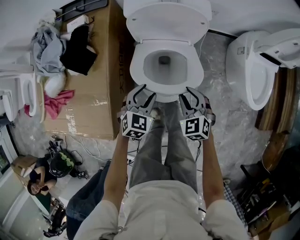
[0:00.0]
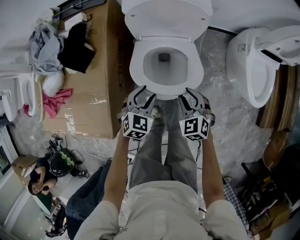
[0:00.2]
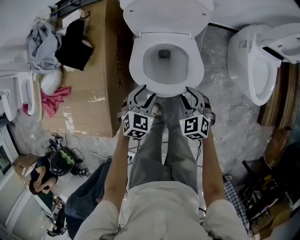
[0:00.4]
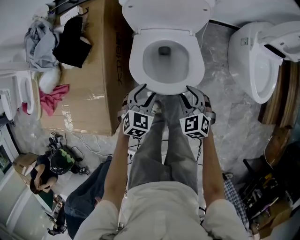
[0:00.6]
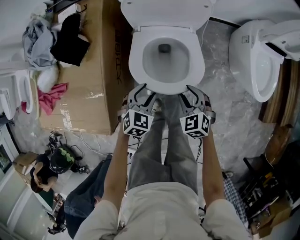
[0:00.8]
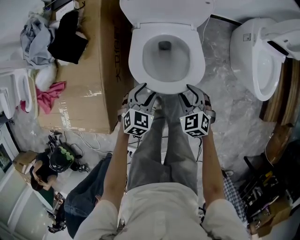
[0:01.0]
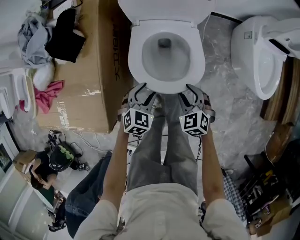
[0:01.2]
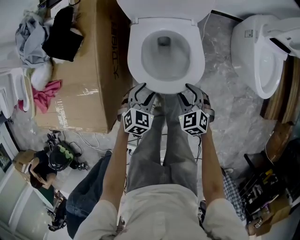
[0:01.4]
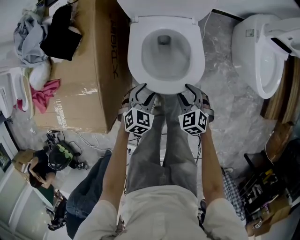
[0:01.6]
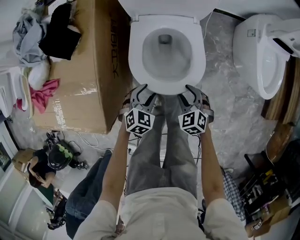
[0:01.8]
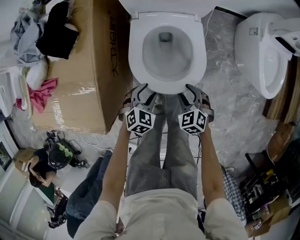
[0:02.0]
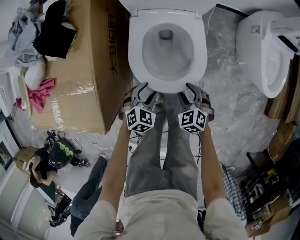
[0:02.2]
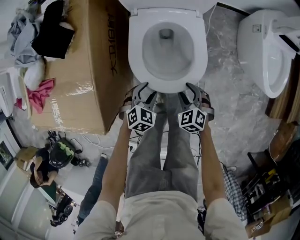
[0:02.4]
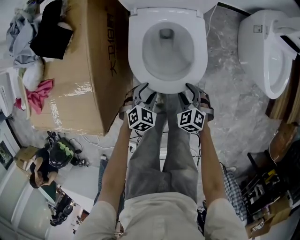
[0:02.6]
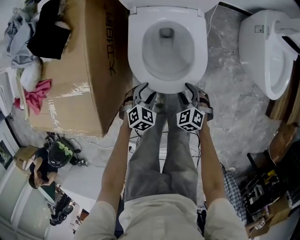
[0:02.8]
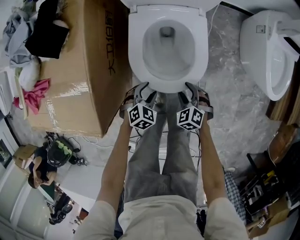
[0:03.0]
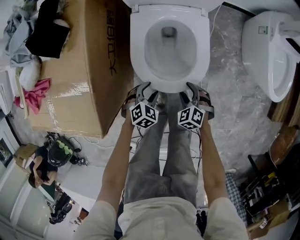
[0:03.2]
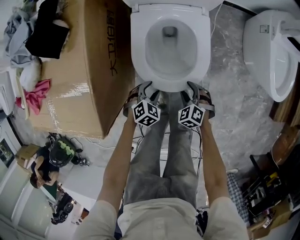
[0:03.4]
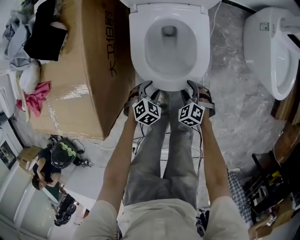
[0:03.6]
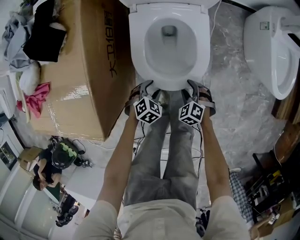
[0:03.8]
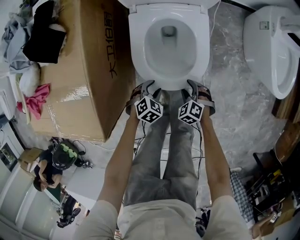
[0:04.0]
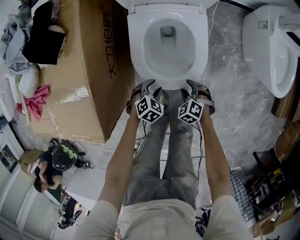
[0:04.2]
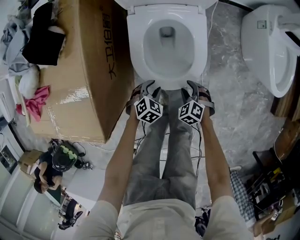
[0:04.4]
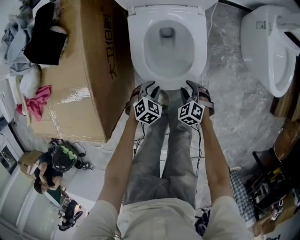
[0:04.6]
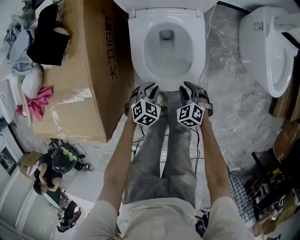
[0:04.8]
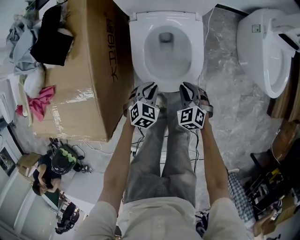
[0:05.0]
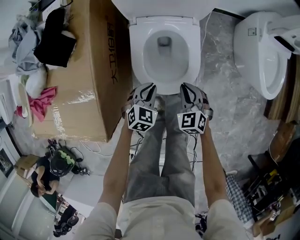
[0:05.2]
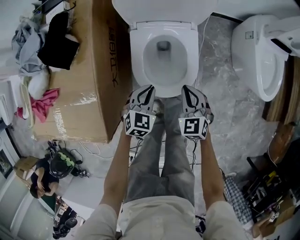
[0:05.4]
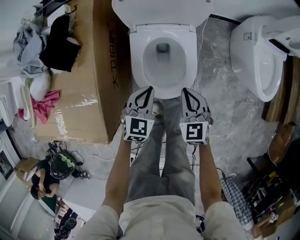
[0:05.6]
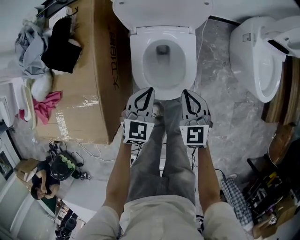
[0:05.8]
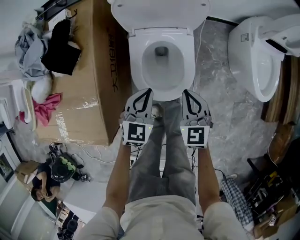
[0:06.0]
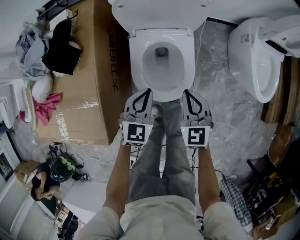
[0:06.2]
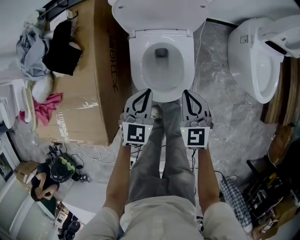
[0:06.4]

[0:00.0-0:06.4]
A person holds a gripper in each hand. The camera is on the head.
0:00.0 to 0:01.6: Both grippers move downward and backward, roughly 15 cm.
0:01.6 to 0:03.2: Both grippers travel together downward, approximately 10 cm.
0:03.2 to 0:04.8: The right gripper closes. The left gripper closes.
0:04.8 to 0:06.4: The grippers both shift upward by roughly 25 cm. The left gripper changes its angle by approximately 30 degrees. Meanwhile the right gripper points its fingers some 30 degrees further upward, and closes.

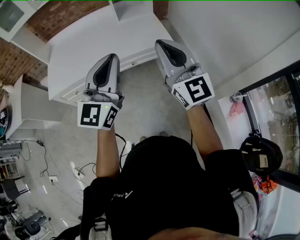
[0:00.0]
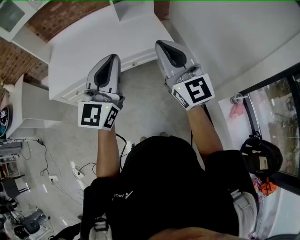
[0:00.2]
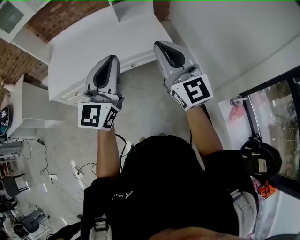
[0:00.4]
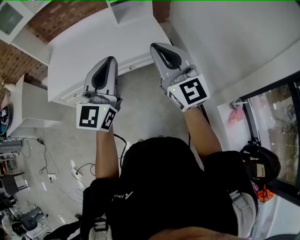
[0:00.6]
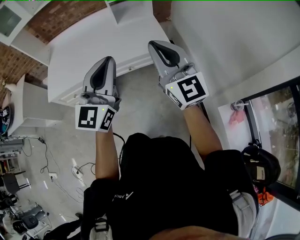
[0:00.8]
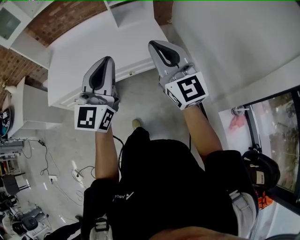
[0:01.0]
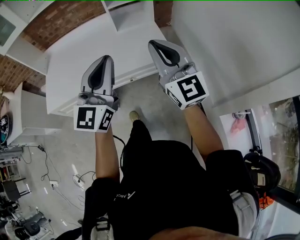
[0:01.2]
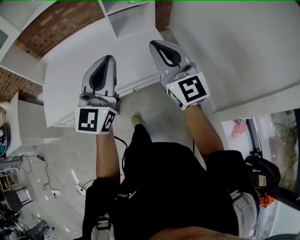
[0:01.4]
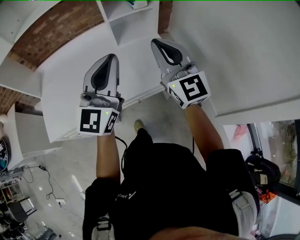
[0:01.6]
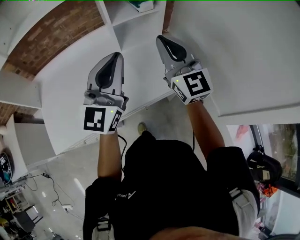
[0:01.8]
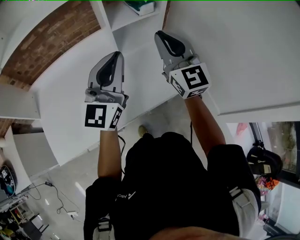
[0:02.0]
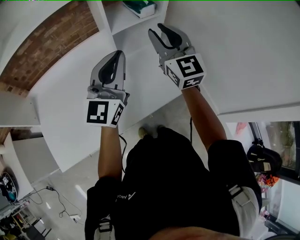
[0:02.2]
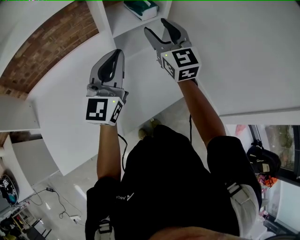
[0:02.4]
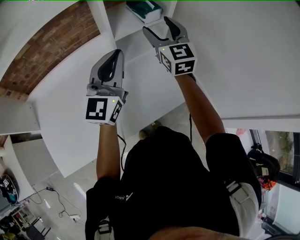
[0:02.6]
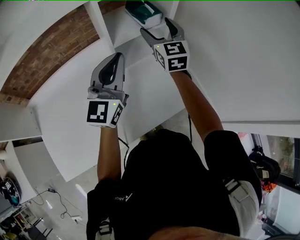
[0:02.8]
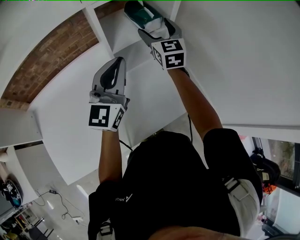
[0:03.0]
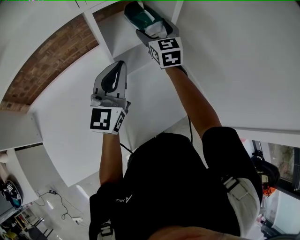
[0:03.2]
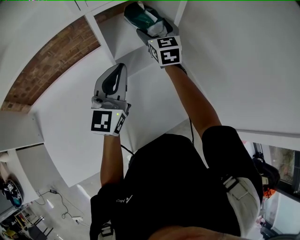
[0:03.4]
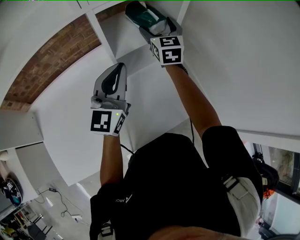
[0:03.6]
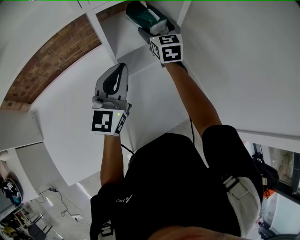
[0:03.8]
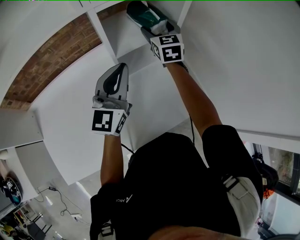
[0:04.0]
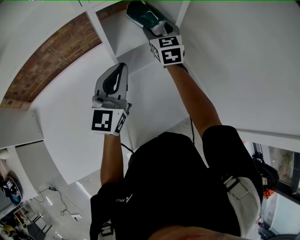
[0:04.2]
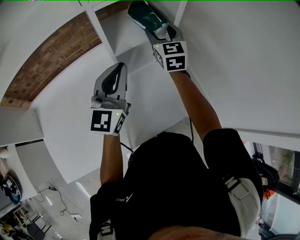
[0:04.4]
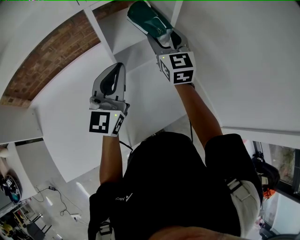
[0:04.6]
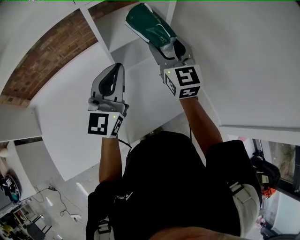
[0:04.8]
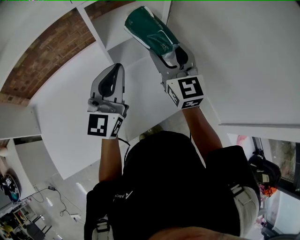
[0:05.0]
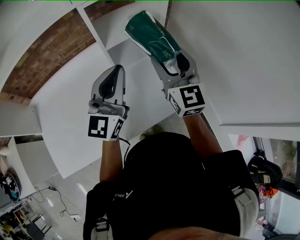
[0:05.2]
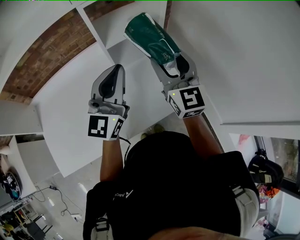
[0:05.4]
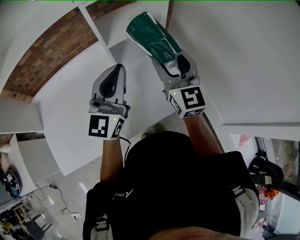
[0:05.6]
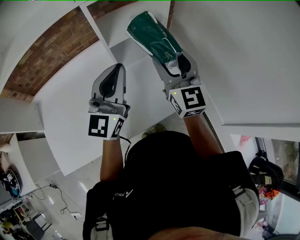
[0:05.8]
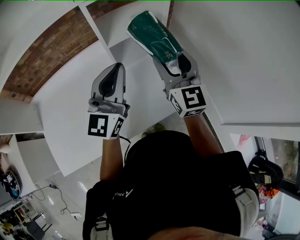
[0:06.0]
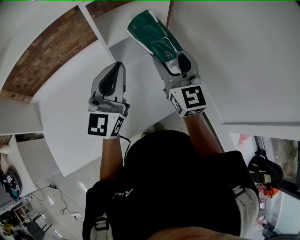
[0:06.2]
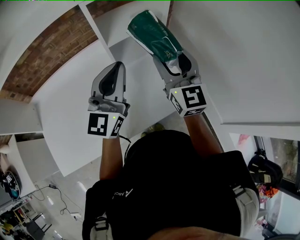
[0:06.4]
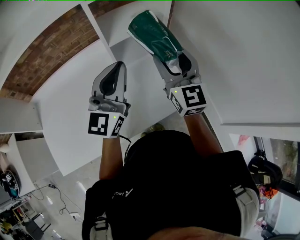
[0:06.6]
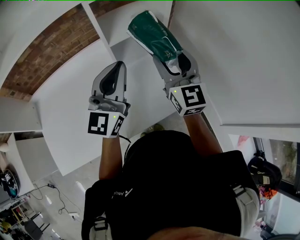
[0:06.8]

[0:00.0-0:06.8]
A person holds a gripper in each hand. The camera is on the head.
0:00.0 to 0:01.4: The grippers both shift forward by approximately 20 cm.
0:01.4 to 0:02.8: The grippers both shift forward by roughly 40 cm. The right gripper turns by approximately 30 degrees, and opens its fingers.
0:02.8 to 0:04.0: The right gripper is displaced forward by approximately 10 cm; the left gripper ends up some 5 cm from where it was.
0:04.0 to 0:05.4: The right gripper heads backward, covering roughly 25 cm. Meanwhile the left gripper heads backward and to the right, covering roughly 10 cm.
0:05.4 to 0:06.8: Both grippers stay put.

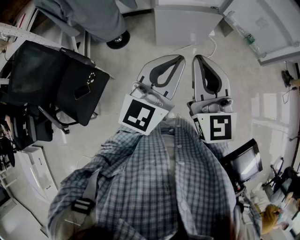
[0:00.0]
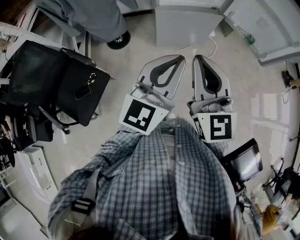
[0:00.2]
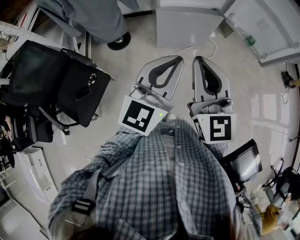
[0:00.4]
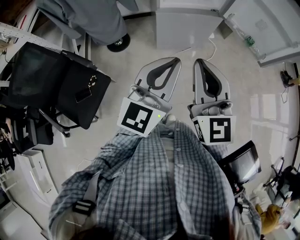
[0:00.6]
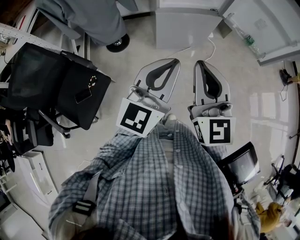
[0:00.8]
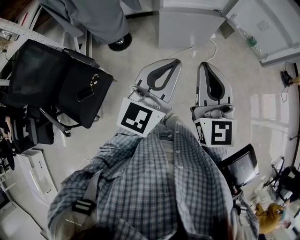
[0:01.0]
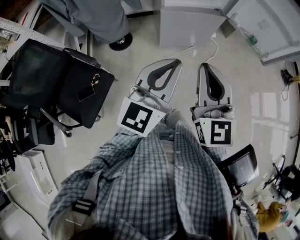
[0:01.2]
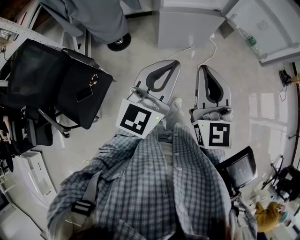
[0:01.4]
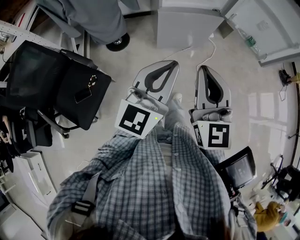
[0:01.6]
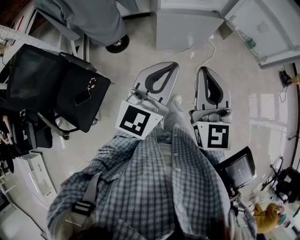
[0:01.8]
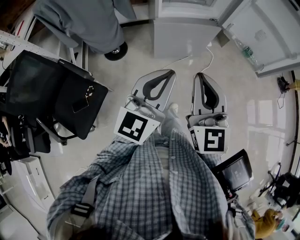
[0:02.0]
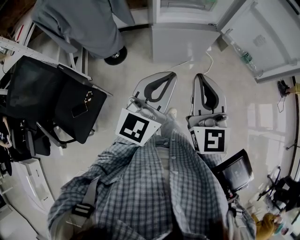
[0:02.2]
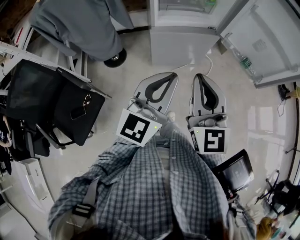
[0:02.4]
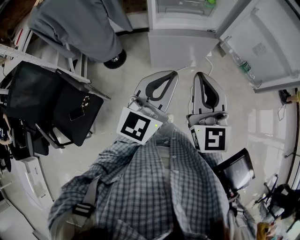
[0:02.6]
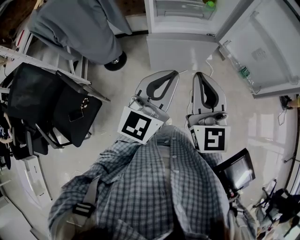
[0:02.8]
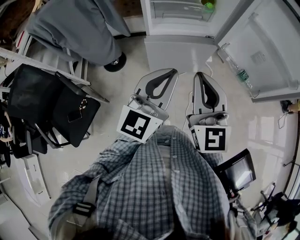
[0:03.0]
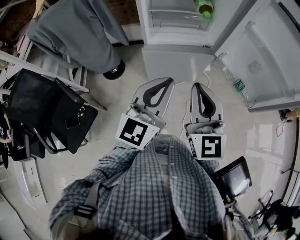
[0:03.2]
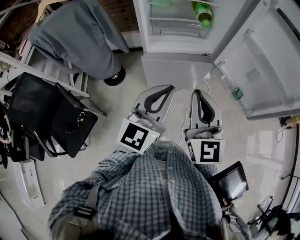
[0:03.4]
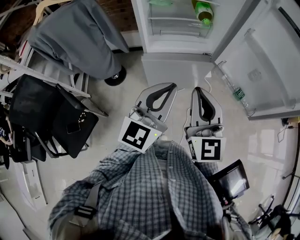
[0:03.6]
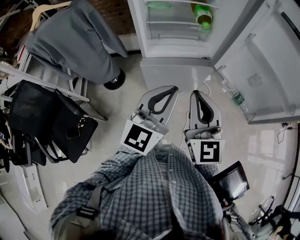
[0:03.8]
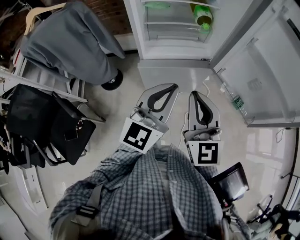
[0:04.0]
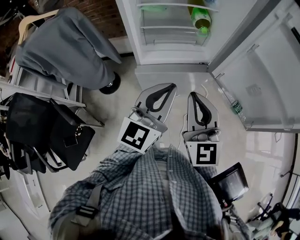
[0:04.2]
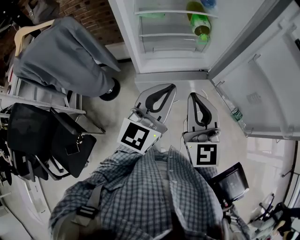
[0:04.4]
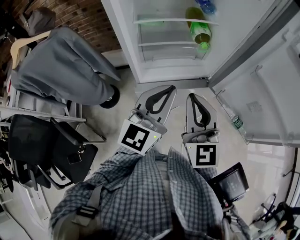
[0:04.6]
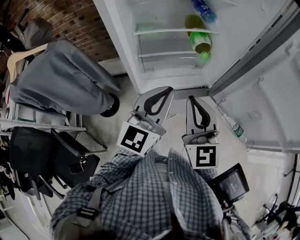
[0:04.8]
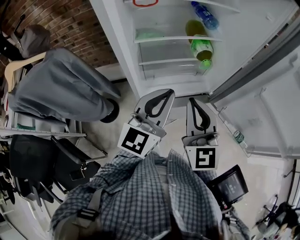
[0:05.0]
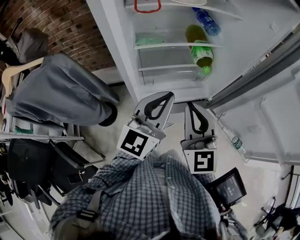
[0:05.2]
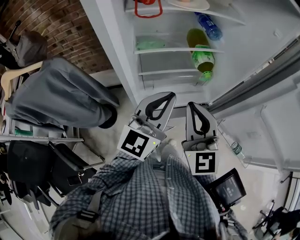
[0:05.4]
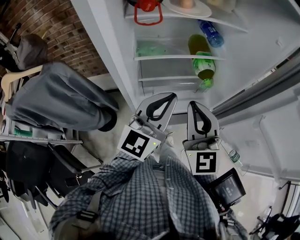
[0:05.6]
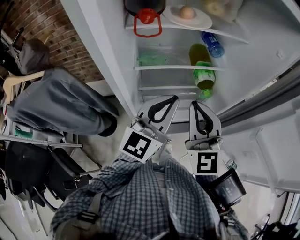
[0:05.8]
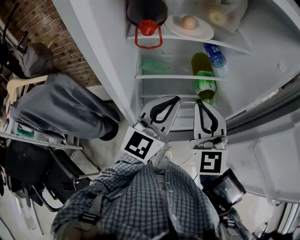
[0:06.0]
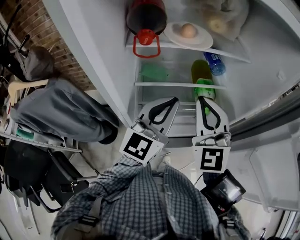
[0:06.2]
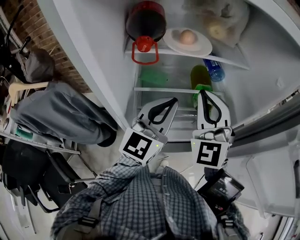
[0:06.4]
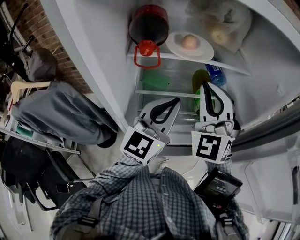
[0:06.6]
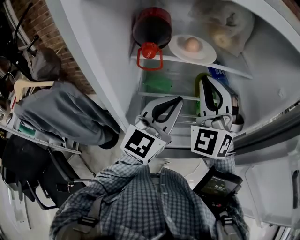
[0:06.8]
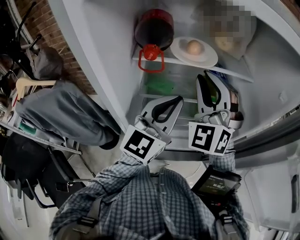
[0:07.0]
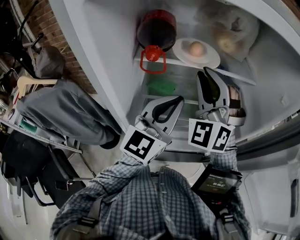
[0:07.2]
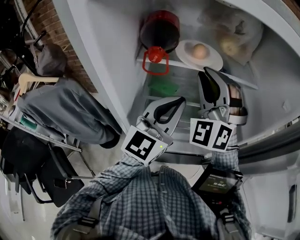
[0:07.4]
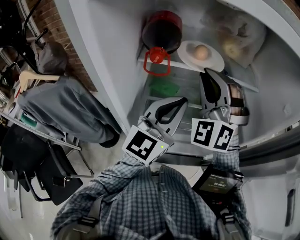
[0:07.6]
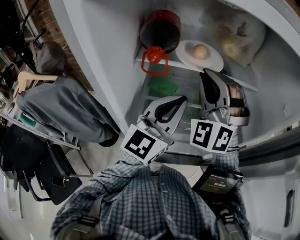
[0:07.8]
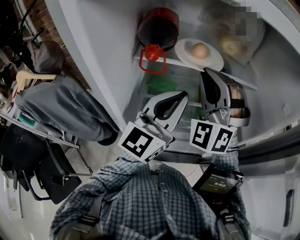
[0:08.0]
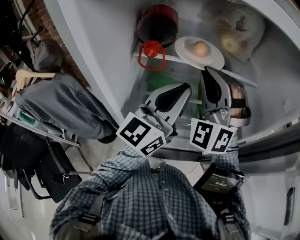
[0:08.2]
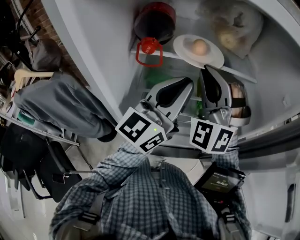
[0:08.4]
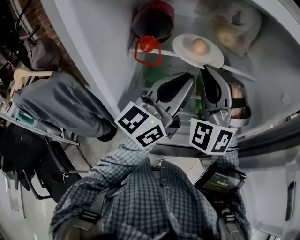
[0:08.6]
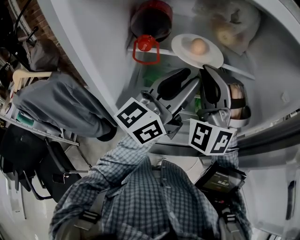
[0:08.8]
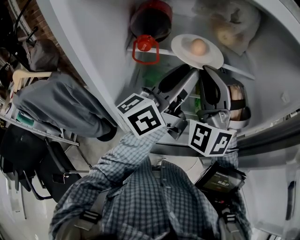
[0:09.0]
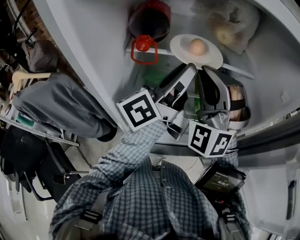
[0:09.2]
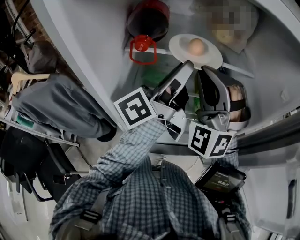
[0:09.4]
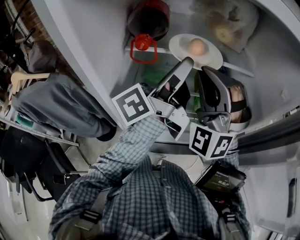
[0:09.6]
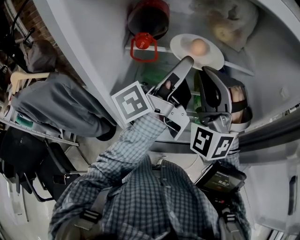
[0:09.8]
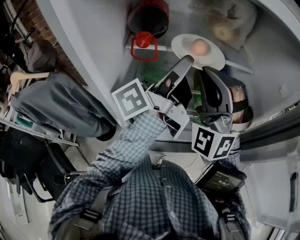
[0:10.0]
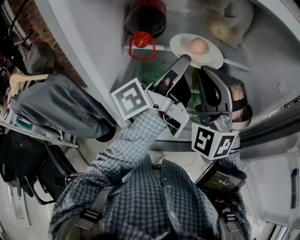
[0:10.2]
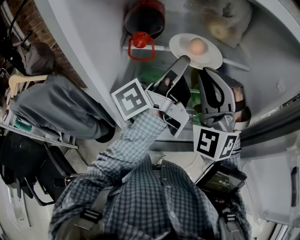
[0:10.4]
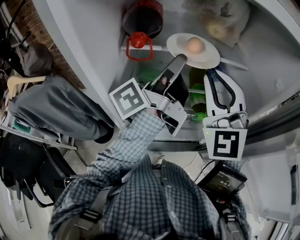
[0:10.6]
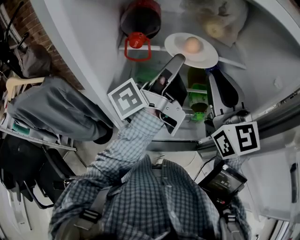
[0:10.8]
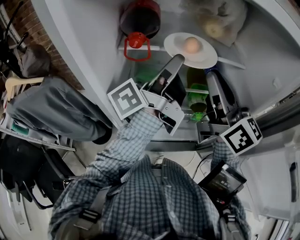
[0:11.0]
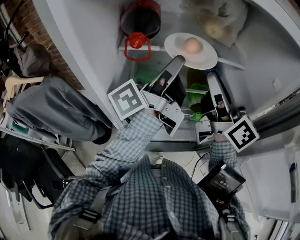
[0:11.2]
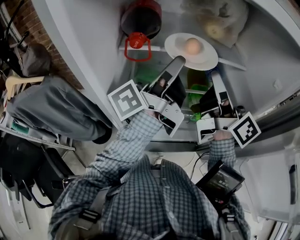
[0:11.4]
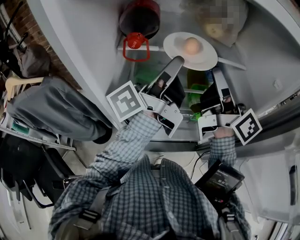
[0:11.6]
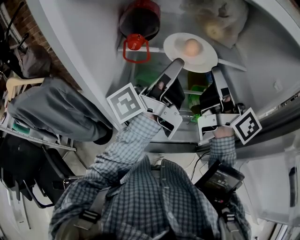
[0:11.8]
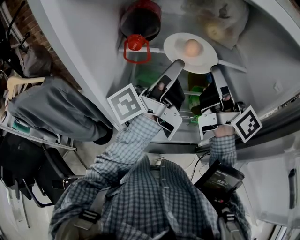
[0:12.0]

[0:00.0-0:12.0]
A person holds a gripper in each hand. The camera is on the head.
0:00.0 to 0:01.6: The left gripper is displaced to the left by some 5 cm.
0:01.6 to 0:03.0: Both grippers move forward and to the right, about 20 cm.
0:03.0 to 0:04.4: The grippers both shift forward by about 20 cm.
0:04.4 to 0:06.0: Both grippers move forward, about 25 cm.
0:06.0 to 0:07.6: The right gripper shifts roughly 15 cm forward and upward, and rotates around the line of its fingers by roughly 50 degrees, counterclockwise from behind; the left gripper heads forward, covering approximately 5 cm.
0:07.6 to 0:09.0: The left gripper moves upward, roughly 5 cm, rotates around the line of its fingers by approximately 40 degrees, counterclockwise from behind, and opens.
0:09.0 to 0:10.4: The left gripper swivels some 40 degrees.
0:10.4 to 0:12.0: The right gripper is displaced to the right by roughly 5 cm, and twists approximately 120 degrees clockwise, seen from behind.
